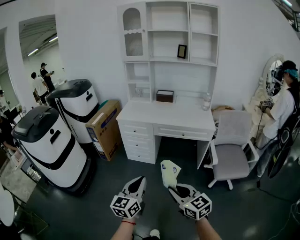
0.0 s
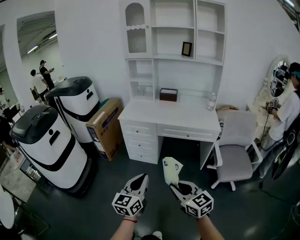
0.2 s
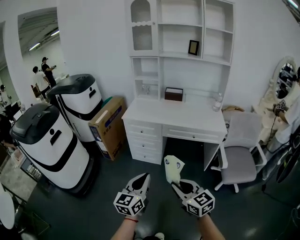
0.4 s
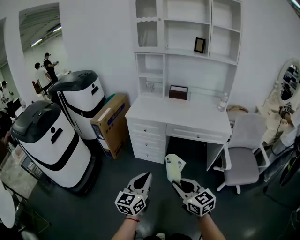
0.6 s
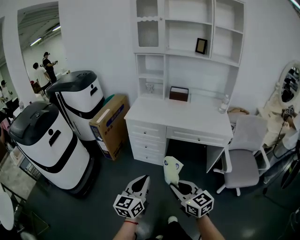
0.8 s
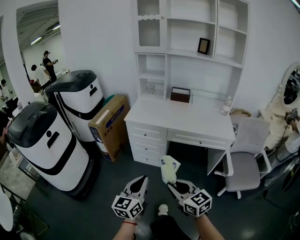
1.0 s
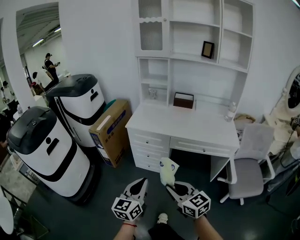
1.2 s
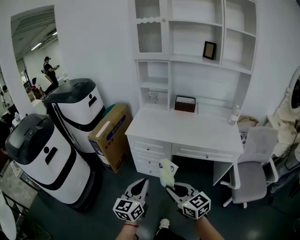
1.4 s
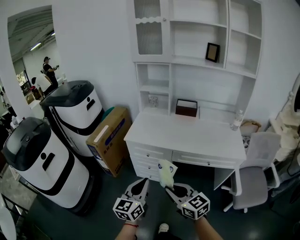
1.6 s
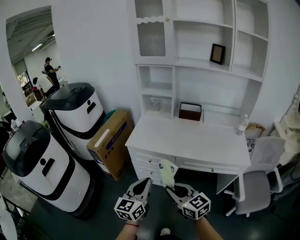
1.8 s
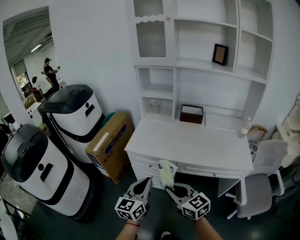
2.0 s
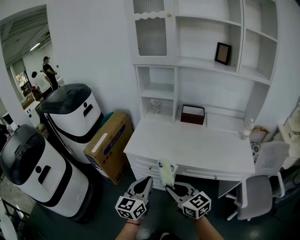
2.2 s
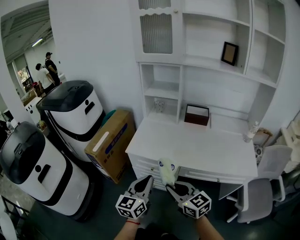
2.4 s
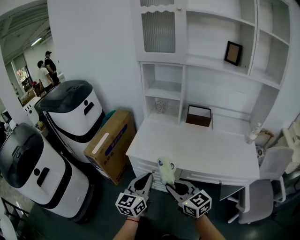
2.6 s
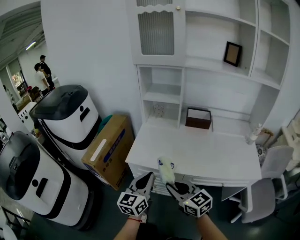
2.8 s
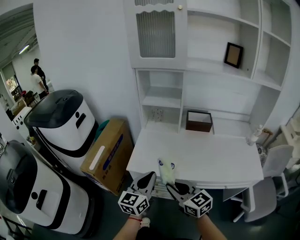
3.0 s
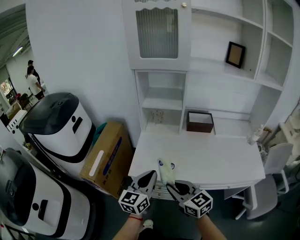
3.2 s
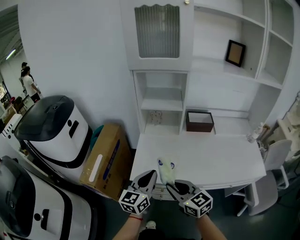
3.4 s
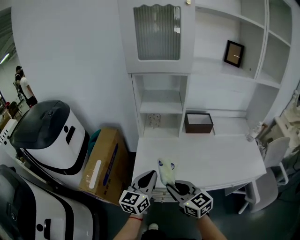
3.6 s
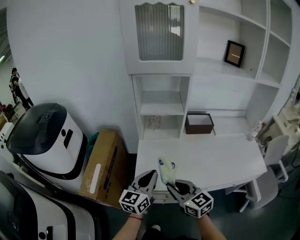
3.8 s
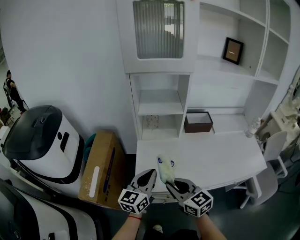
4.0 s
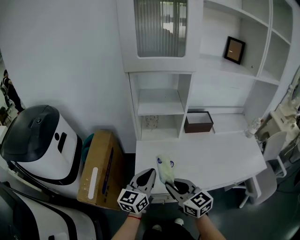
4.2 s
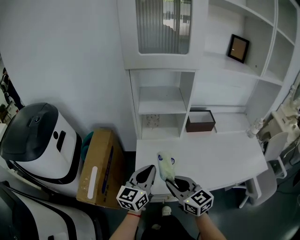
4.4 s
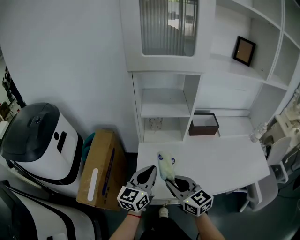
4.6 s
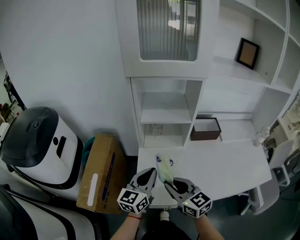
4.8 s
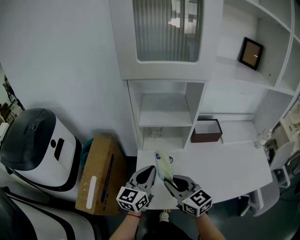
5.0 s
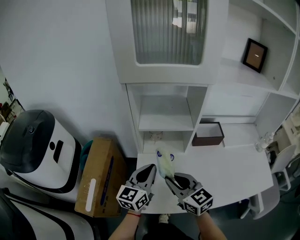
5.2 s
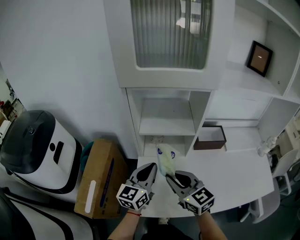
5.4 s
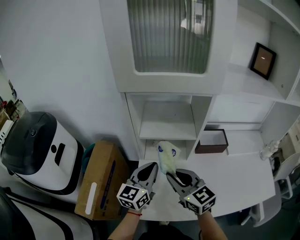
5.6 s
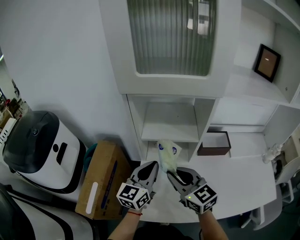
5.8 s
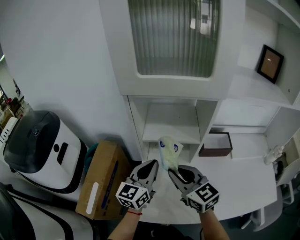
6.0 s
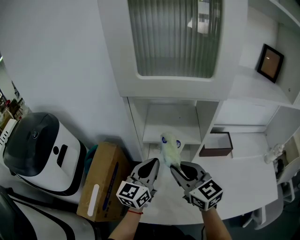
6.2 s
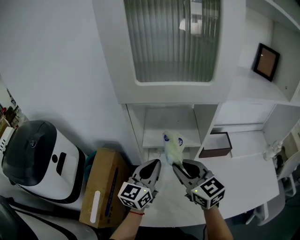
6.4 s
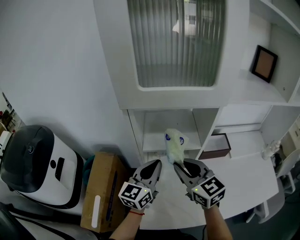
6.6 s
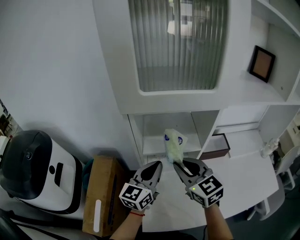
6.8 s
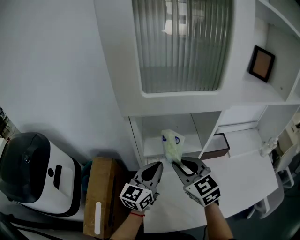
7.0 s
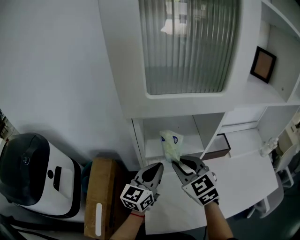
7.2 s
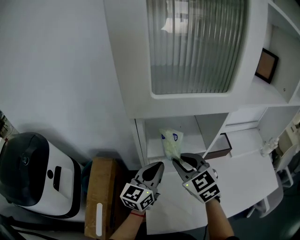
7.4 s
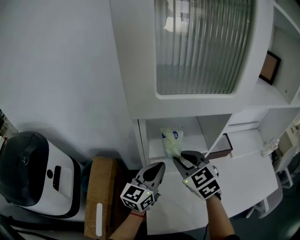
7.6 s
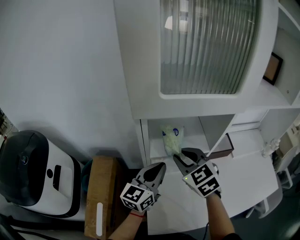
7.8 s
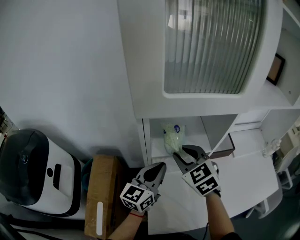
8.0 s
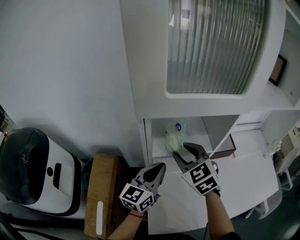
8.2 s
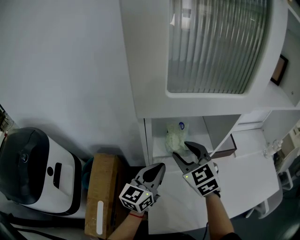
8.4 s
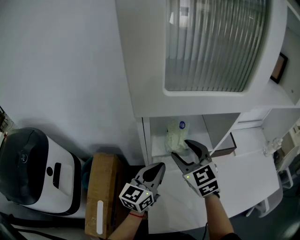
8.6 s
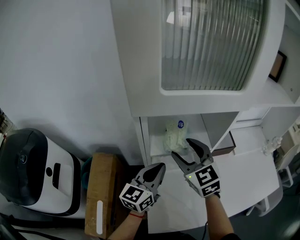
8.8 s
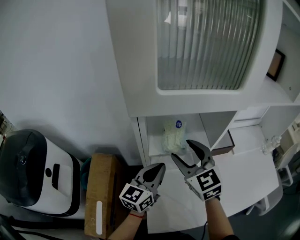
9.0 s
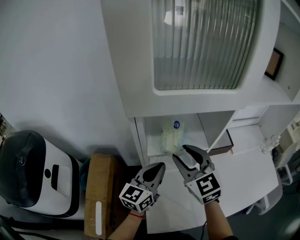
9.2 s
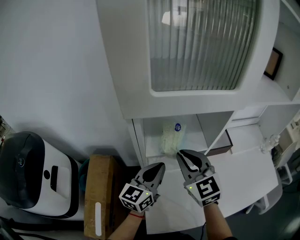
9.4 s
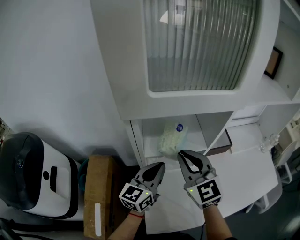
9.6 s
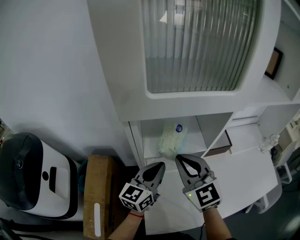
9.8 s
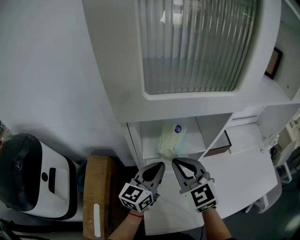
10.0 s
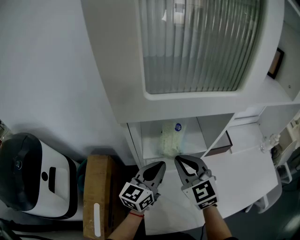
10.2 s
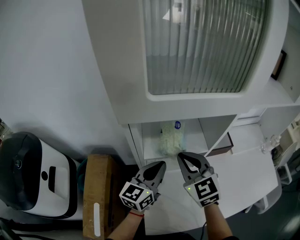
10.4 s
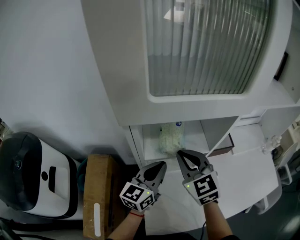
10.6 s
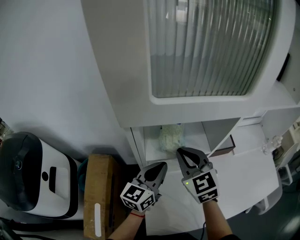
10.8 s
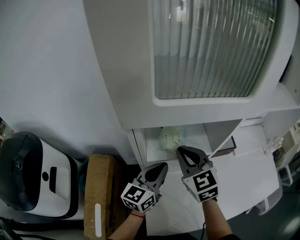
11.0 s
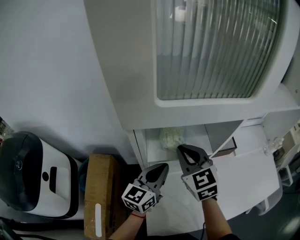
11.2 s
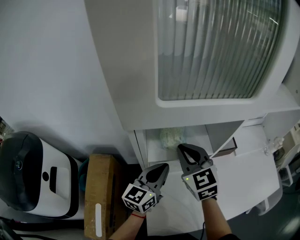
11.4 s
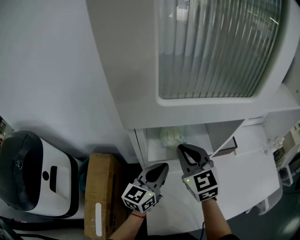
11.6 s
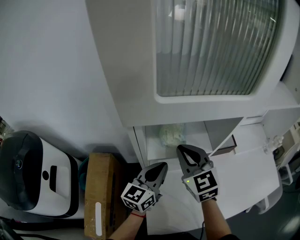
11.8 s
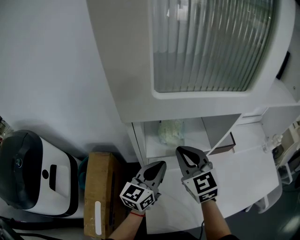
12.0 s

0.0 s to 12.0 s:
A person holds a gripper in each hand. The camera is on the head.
0.0 to 1.6 s: The two grippers go some 40 cm forward.
1.6 to 3.0 s: Both grippers travel together forward, approximately 30 cm.
3.0 to 4.4 s: The right gripper shifts approximately 20 cm forward and to the left, while the left gripper shifts approximately 20 cm forward.
4.4 to 6.0 s: The two grippers go roughly 20 cm forward.
6.0 to 7.6 s: The right gripper shifts approximately 10 cm forward, and rotates roughly 30 degrees. The left gripper heads forward, covering some 5 cm.
7.6 to 9.0 s: The right gripper opens its fingers.
9.0 to 10.4 s: The right gripper closes its fingers.
10.4 to 12.0 s: There are only small adjustments of the grippers.

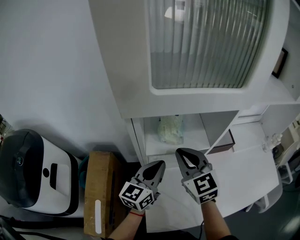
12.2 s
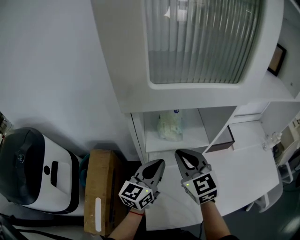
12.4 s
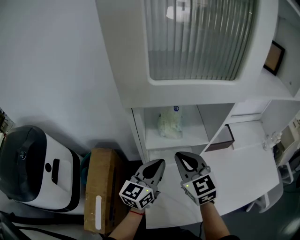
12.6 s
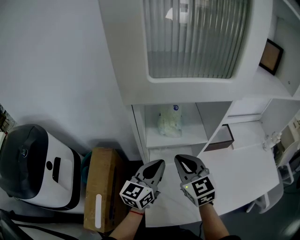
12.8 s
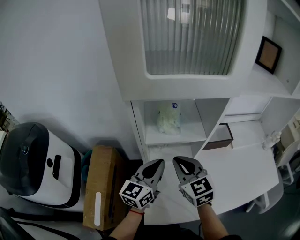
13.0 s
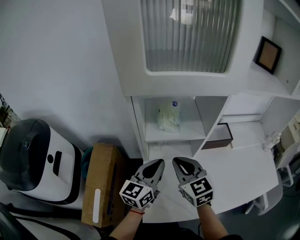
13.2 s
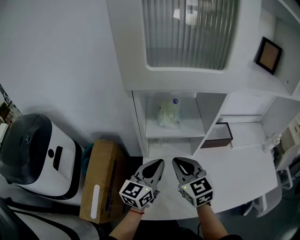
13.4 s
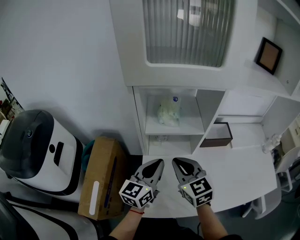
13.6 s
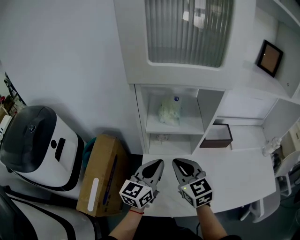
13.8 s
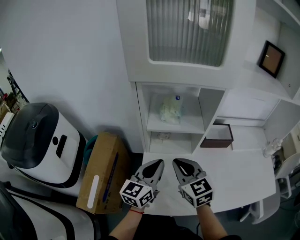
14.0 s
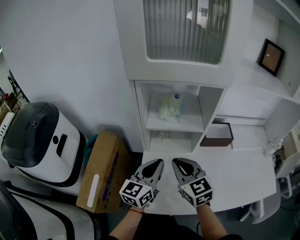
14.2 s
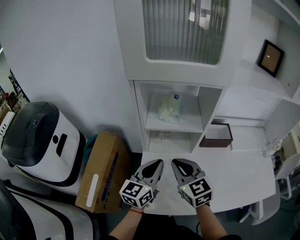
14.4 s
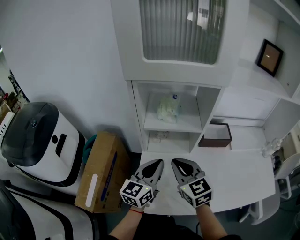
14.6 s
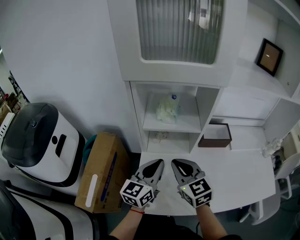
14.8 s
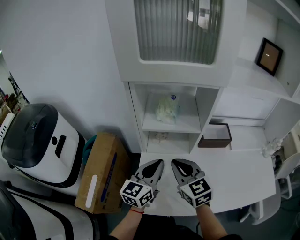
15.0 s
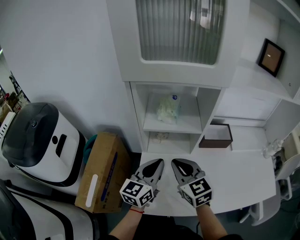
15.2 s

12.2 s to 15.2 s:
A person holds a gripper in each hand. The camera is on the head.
12.2 to 13.8 s: The two grippers go roughly 10 cm backward.
13.8 to 15.2 s: The grippers stay close to where they were, moving slightly.

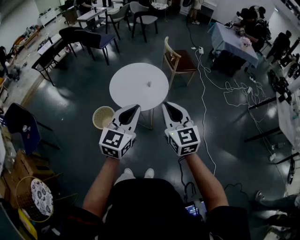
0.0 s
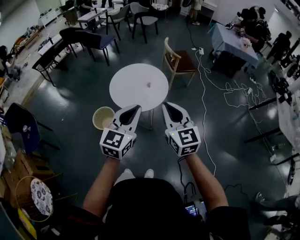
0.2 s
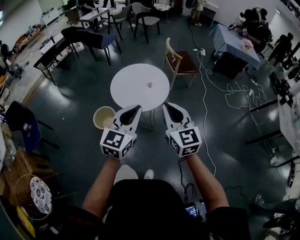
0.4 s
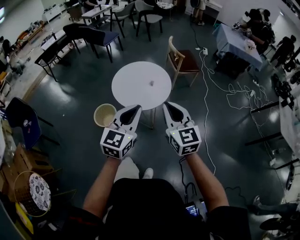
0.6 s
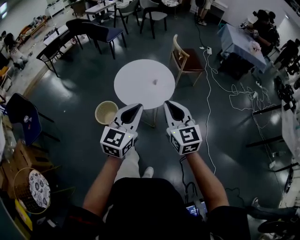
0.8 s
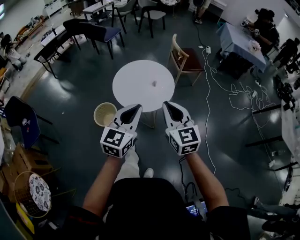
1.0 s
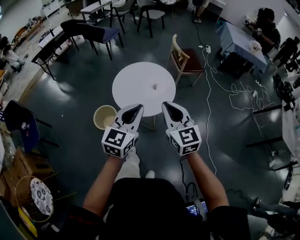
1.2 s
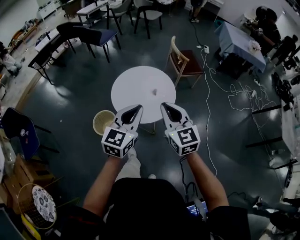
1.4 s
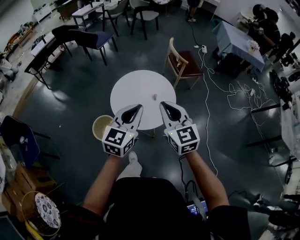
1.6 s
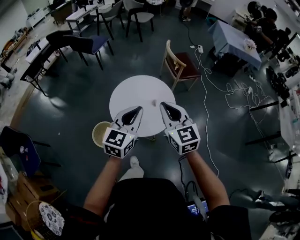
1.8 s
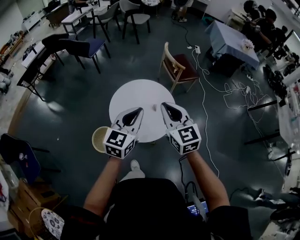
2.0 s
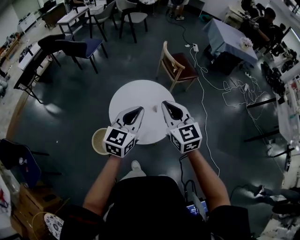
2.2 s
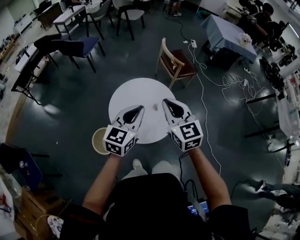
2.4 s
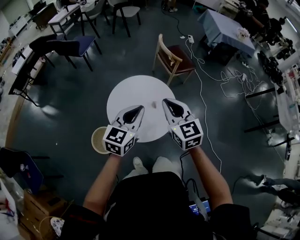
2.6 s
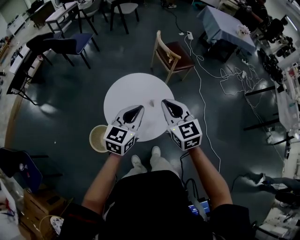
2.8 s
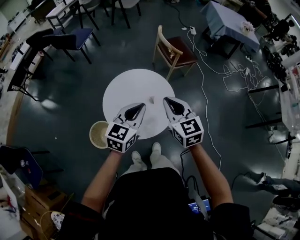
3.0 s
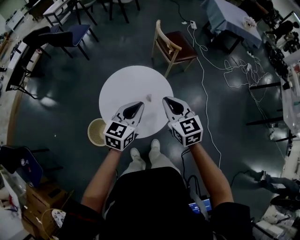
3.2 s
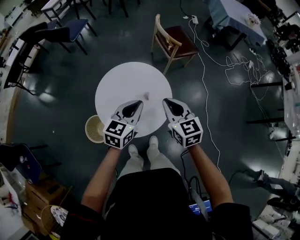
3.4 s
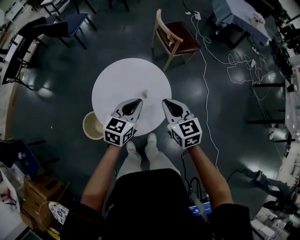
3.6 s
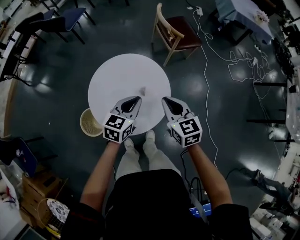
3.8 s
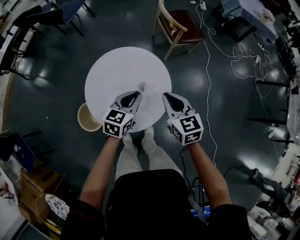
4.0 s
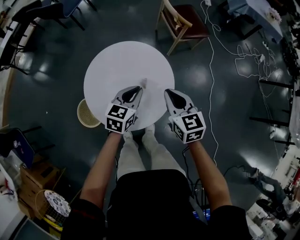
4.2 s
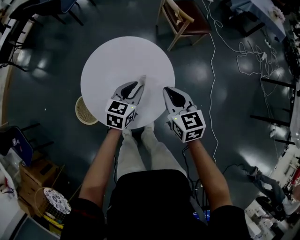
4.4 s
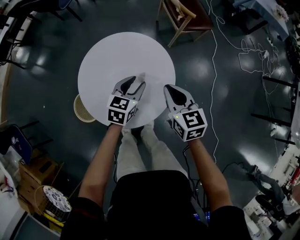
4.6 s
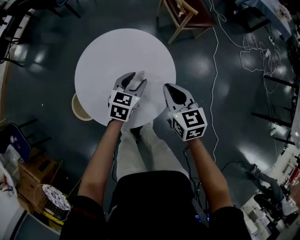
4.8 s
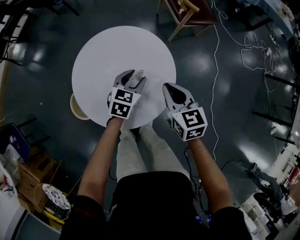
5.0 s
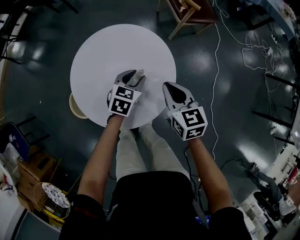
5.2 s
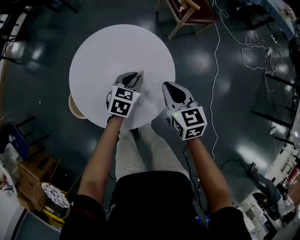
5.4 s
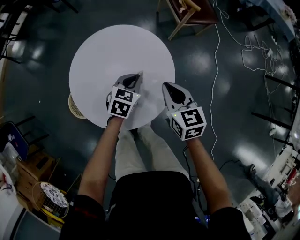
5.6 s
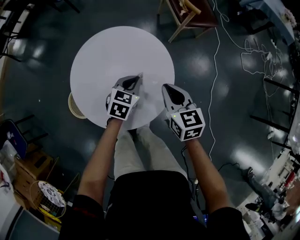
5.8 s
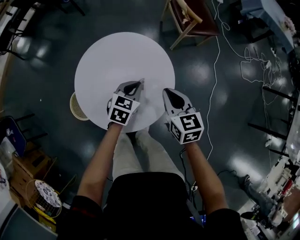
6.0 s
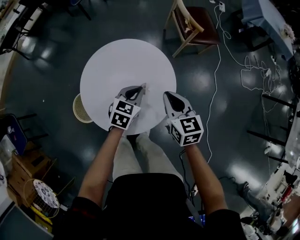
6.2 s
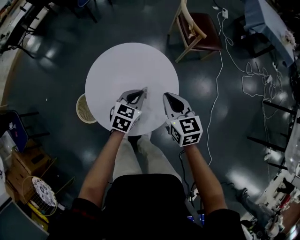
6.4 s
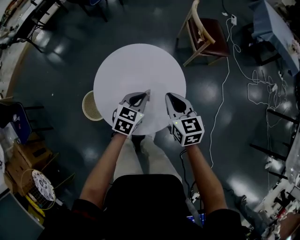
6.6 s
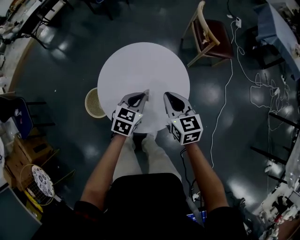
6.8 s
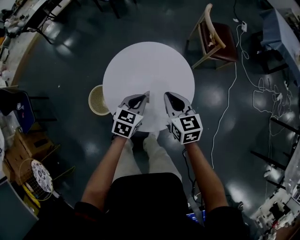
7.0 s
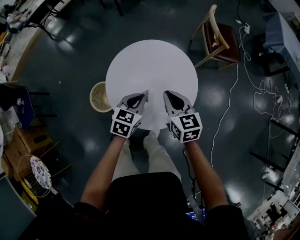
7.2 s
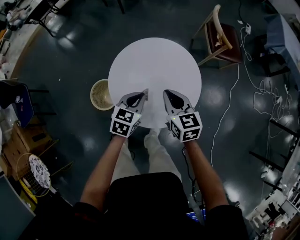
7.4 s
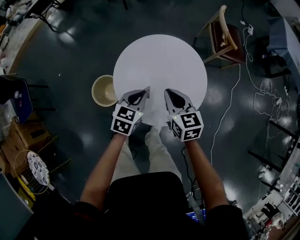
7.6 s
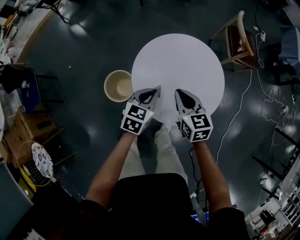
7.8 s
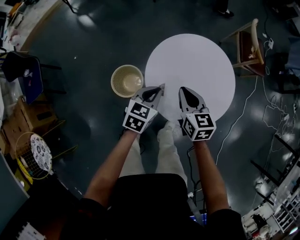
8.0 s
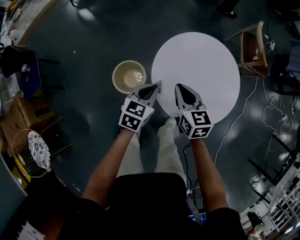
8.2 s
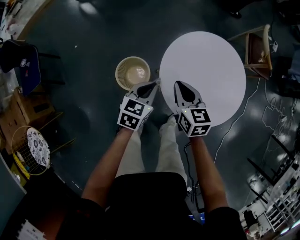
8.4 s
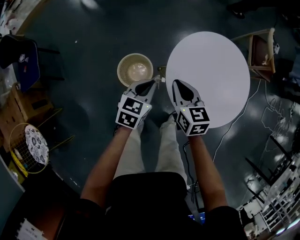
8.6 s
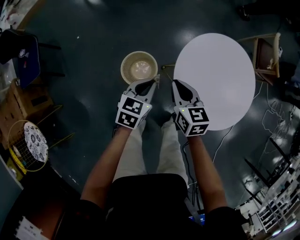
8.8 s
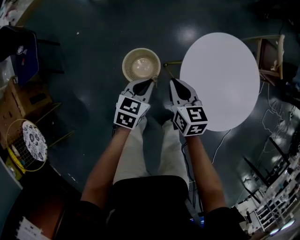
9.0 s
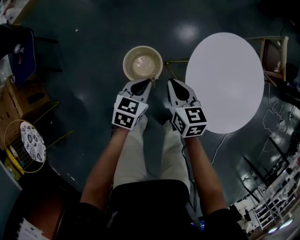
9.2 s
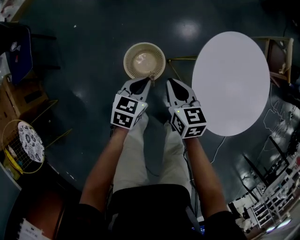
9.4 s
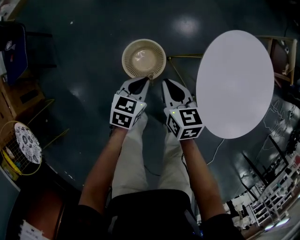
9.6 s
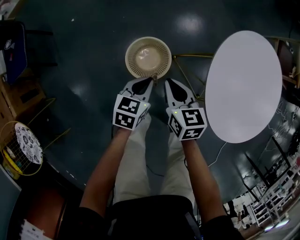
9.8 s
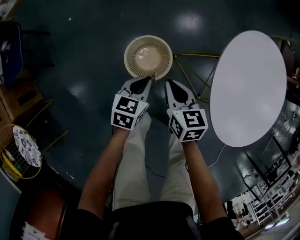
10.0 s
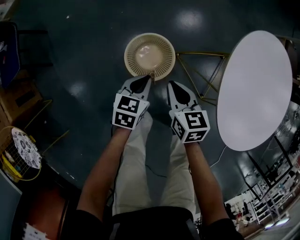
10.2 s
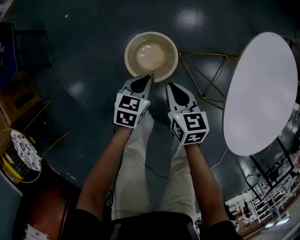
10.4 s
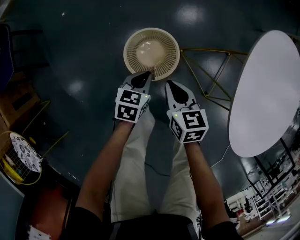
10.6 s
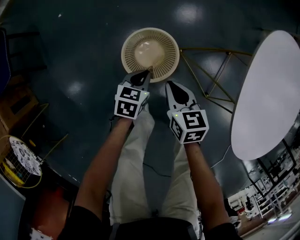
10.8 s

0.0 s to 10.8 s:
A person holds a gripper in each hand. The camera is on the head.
0.0 to 1.6 s: Both grippers travel together forward, approximately 20 cm.
1.6 to 3.0 s: The grippers both shift forward and downward by some 15 cm.
3.0 to 4.6 s: Both grippers move downward and forward, some 25 cm. The left gripper rotates approximately 20 degrees, and opens its fingers.
4.6 to 6.2 s: The left gripper moves about 10 cm downward and comes back, and closes up.
6.2 to 7.8 s: The grippers both shift to the left by approximately 20 cm.
7.8 to 9.2 s: The left gripper goes some 35 cm to the left and downward. Meanwhile the right gripper heads to the left, covering about 35 cm.
9.2 to 10.8 s: The grippers both shift downward by about 30 cm.
